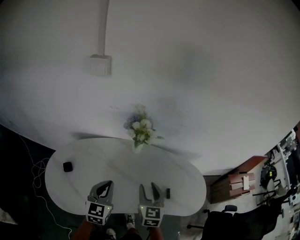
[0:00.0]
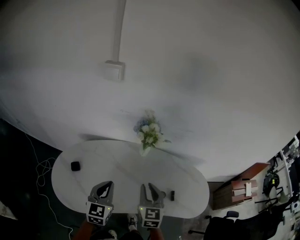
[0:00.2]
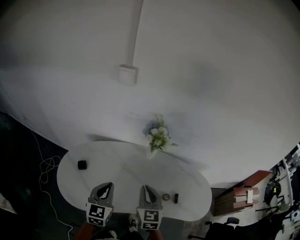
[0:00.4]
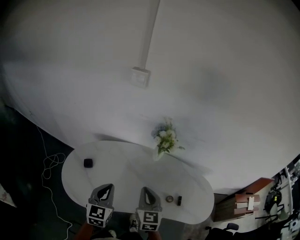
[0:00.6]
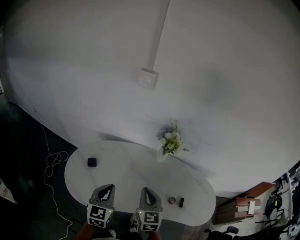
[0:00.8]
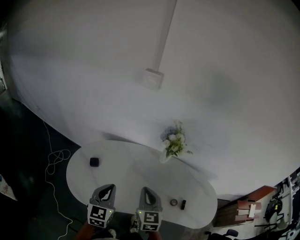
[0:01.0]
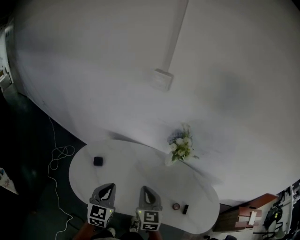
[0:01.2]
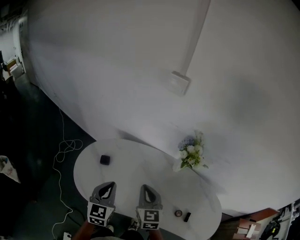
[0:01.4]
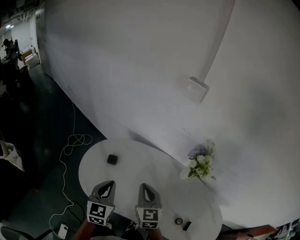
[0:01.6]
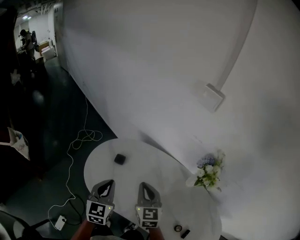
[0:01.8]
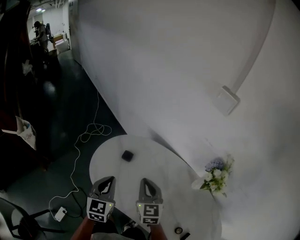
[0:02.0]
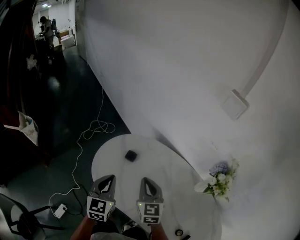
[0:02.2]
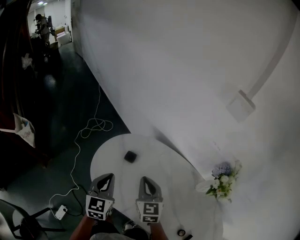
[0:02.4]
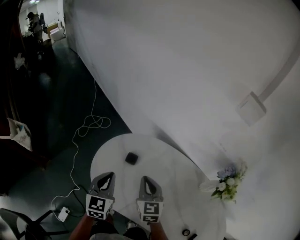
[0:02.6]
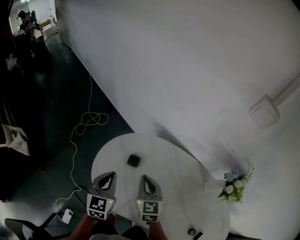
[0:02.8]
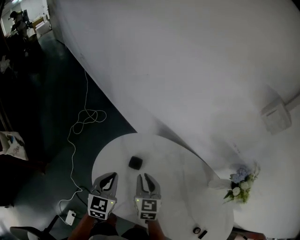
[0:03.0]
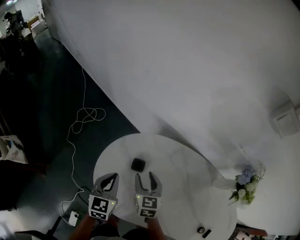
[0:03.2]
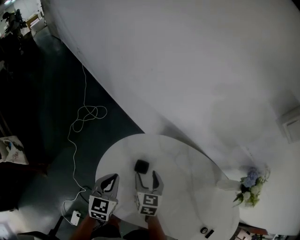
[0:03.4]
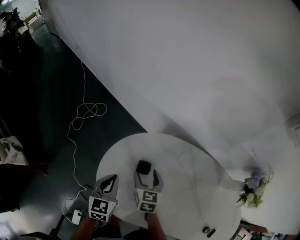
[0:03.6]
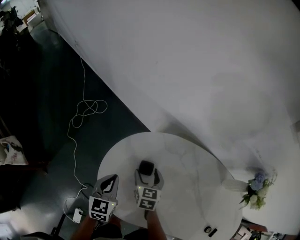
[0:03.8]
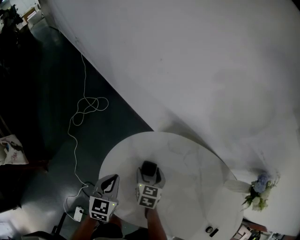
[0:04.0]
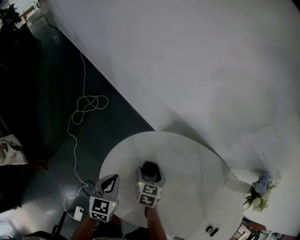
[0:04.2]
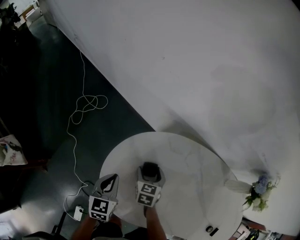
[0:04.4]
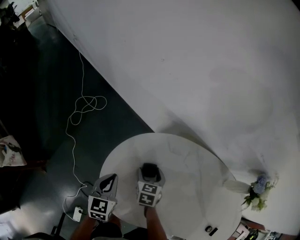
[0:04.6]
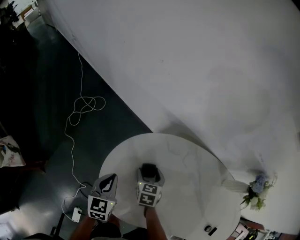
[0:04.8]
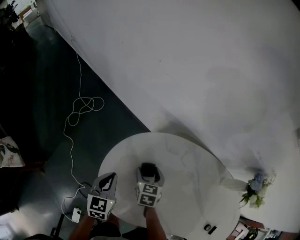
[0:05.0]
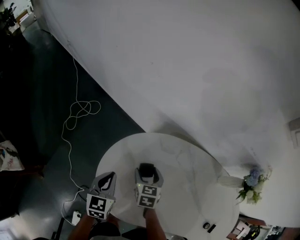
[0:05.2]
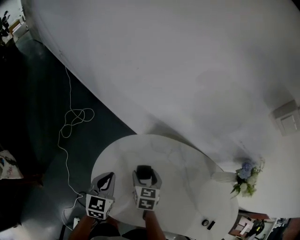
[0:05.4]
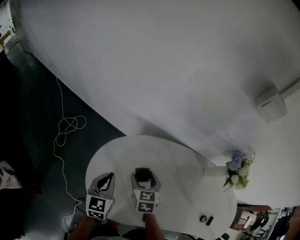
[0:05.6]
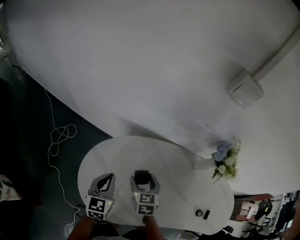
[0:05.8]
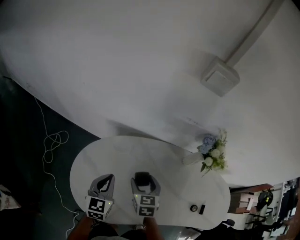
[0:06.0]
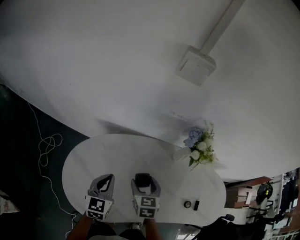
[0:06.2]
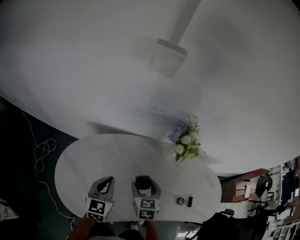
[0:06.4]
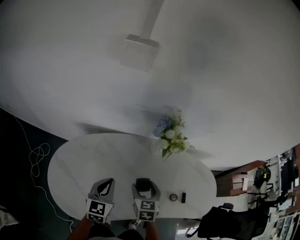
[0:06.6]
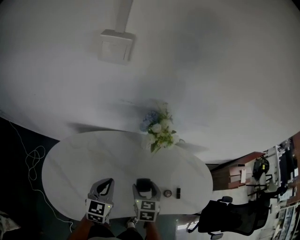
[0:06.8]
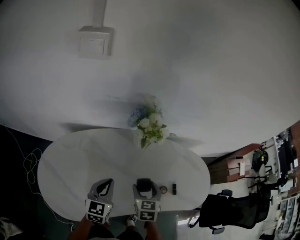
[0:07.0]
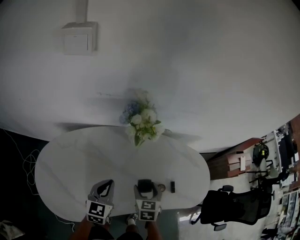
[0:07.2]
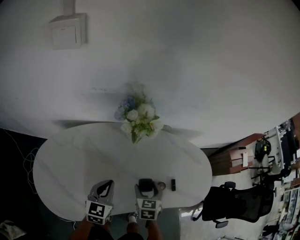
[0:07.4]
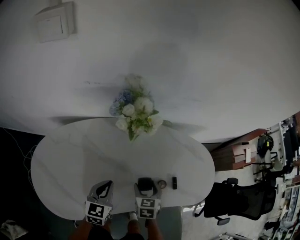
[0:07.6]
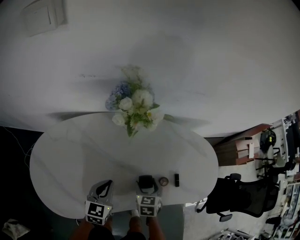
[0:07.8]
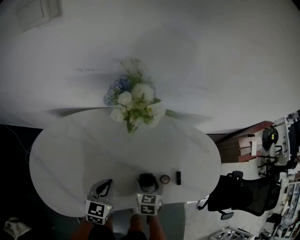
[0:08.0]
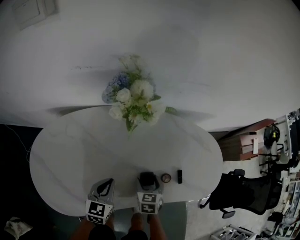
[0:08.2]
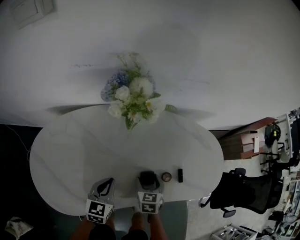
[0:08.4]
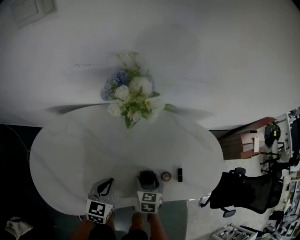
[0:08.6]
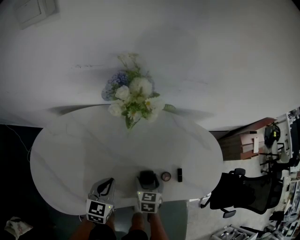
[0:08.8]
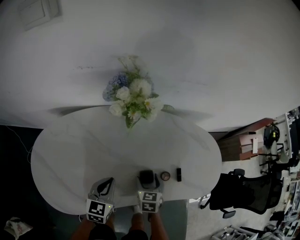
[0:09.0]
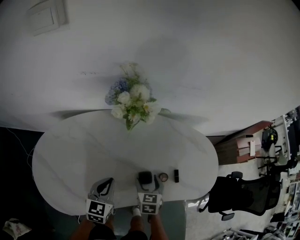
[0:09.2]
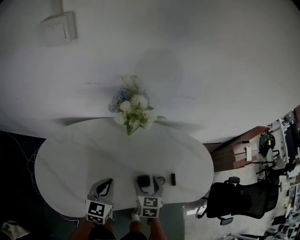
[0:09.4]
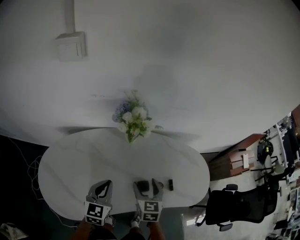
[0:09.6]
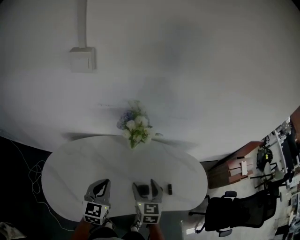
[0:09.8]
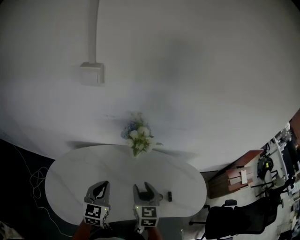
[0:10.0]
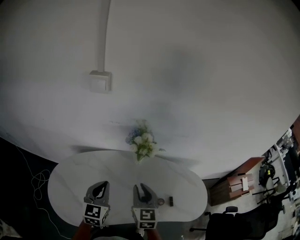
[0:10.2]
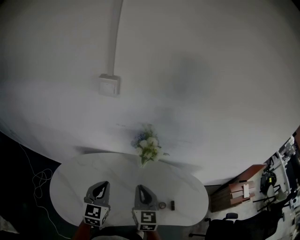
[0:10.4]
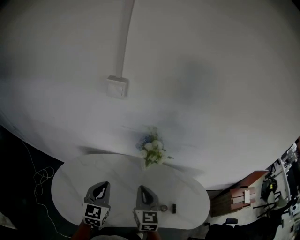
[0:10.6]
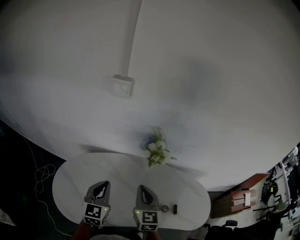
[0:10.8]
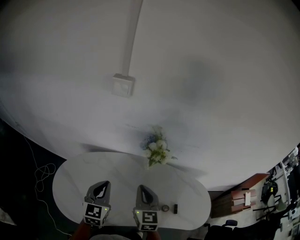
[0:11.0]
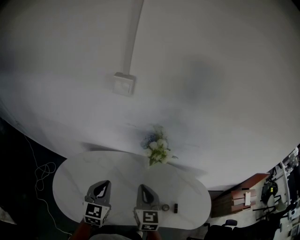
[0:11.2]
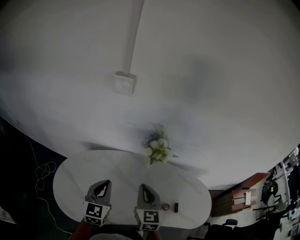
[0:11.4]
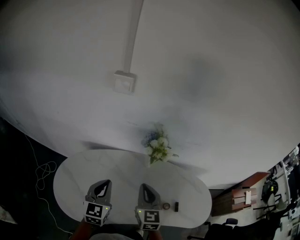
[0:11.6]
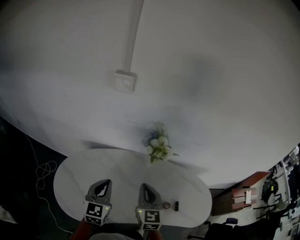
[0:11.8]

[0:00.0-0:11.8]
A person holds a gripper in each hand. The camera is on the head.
0:00.0 to 0:01.4: The left gripper shifts by approximately 20 cm, and rotates some 30 degrees. Meanwhile the right gripper shifts by approximately 20 cm, rotates some 30 degrees, and closes.
0:01.4 to 0:03.0: The left gripper moves approximately 25 cm. Meanwhile the right gripper changes place by some 30 cm.
0:03.0 to 0:04.4: The right gripper shifts approximately 15 cm downward, changes its angle by some 30 degrees, and opens. The left gripper heads downward and to the left, covering some 10 cm.
0:04.4 to 0:06.0: The grippers both shift to the right and upward by some 20 cm. The left gripper swivels some 20 degrees.
0:06.0 to 0:07.4: Both grippers travel together to the right, some 30 cm. The right gripper rotates some 20 degrees, while the left gripper swivels about 20 degrees.
0:07.4 to 0:08.8: The two grippers go approximately 10 cm downward.
0:08.8 to 0:10.4: Both grippers move upward, roughly 30 cm. The left gripper swivels about 30 degrees. Meanwhile the right gripper tilts its fingers approximately 40 degrees upward, and closes up.
0:10.4 to 0:11.8: The grippers stay close to where they were, moving slightly.

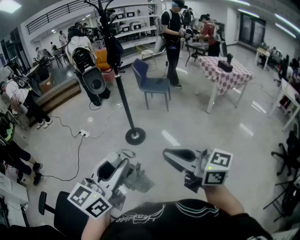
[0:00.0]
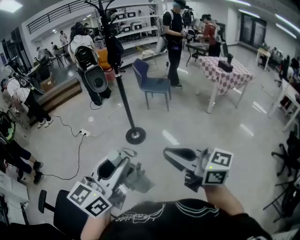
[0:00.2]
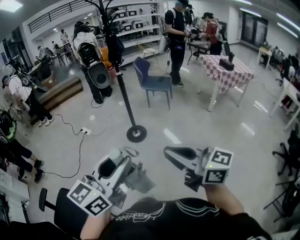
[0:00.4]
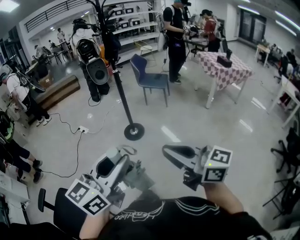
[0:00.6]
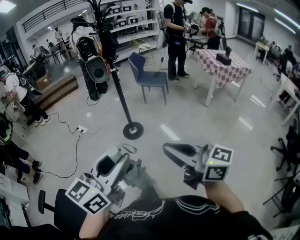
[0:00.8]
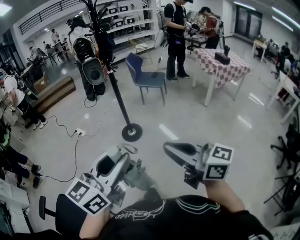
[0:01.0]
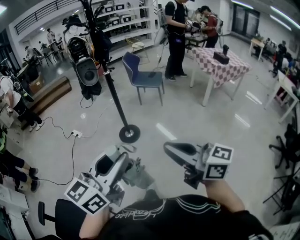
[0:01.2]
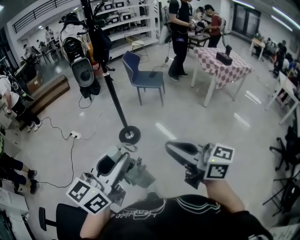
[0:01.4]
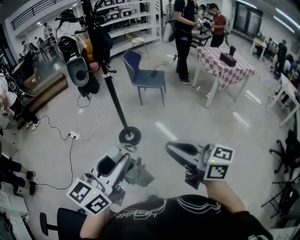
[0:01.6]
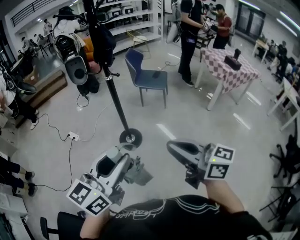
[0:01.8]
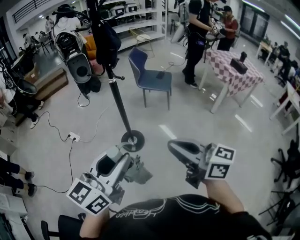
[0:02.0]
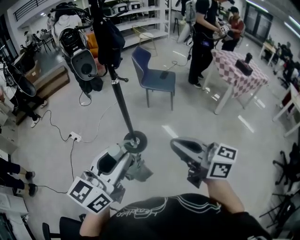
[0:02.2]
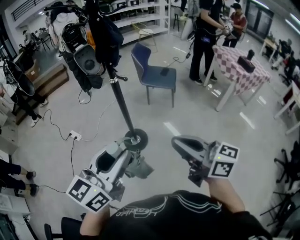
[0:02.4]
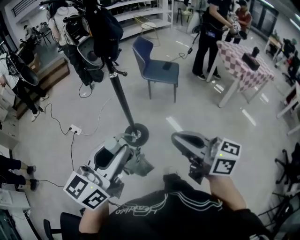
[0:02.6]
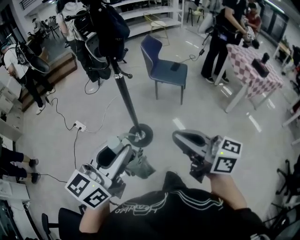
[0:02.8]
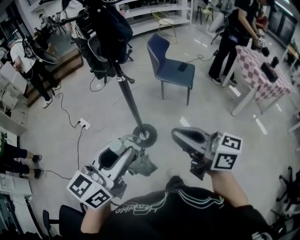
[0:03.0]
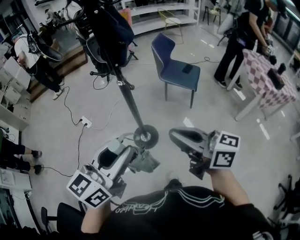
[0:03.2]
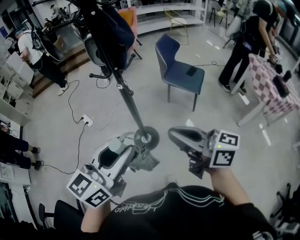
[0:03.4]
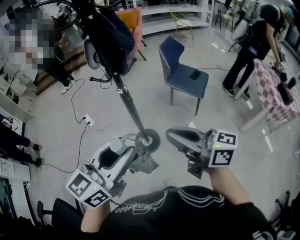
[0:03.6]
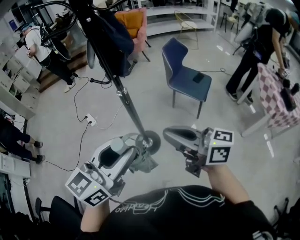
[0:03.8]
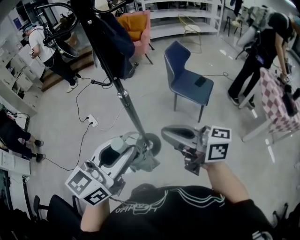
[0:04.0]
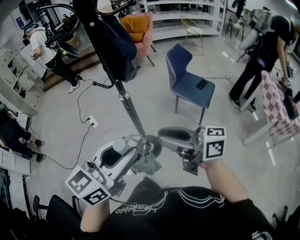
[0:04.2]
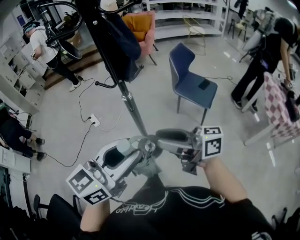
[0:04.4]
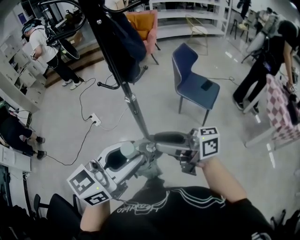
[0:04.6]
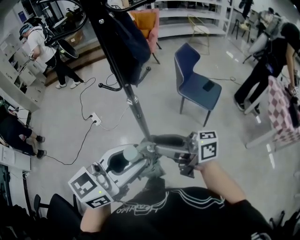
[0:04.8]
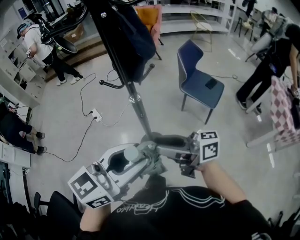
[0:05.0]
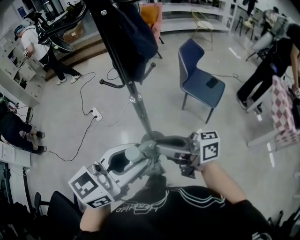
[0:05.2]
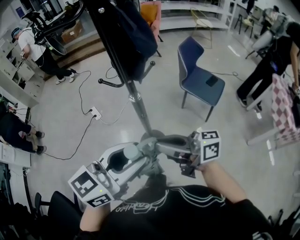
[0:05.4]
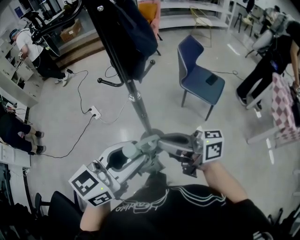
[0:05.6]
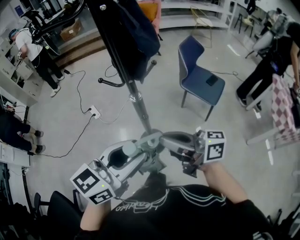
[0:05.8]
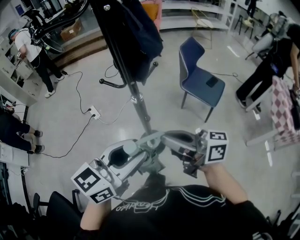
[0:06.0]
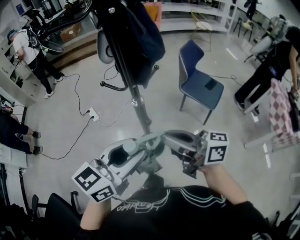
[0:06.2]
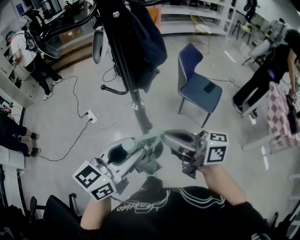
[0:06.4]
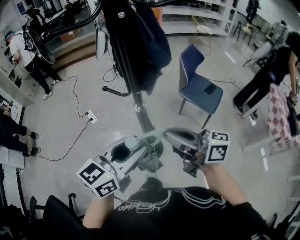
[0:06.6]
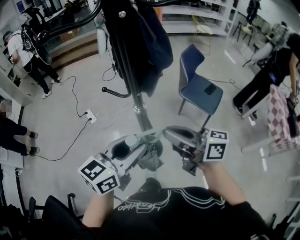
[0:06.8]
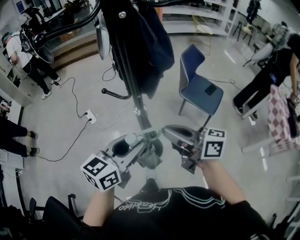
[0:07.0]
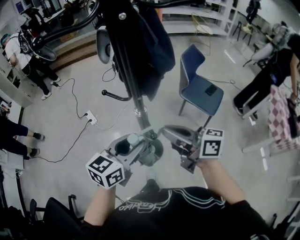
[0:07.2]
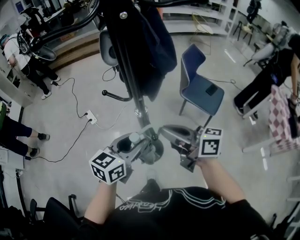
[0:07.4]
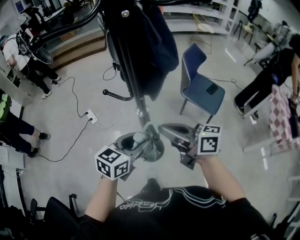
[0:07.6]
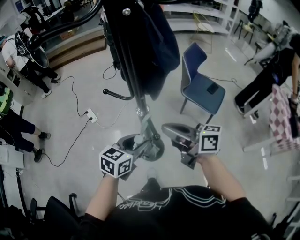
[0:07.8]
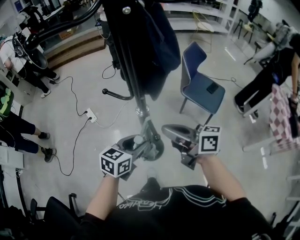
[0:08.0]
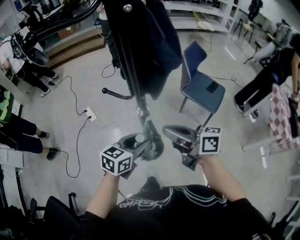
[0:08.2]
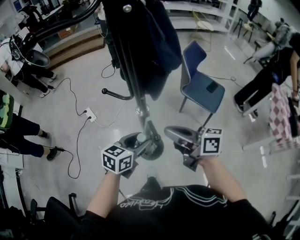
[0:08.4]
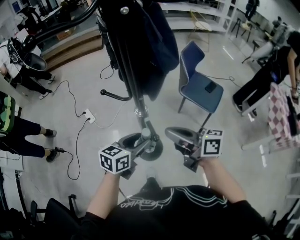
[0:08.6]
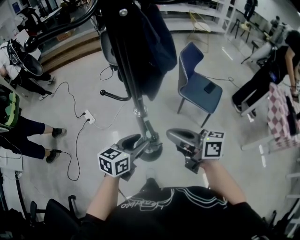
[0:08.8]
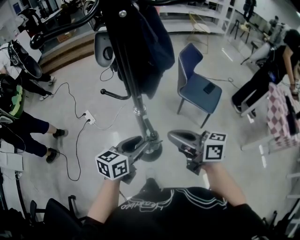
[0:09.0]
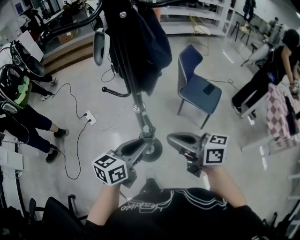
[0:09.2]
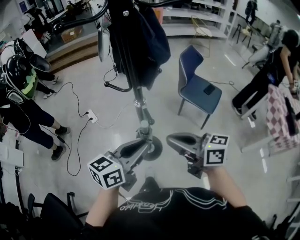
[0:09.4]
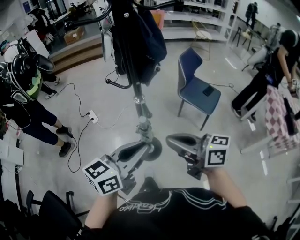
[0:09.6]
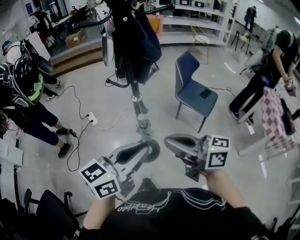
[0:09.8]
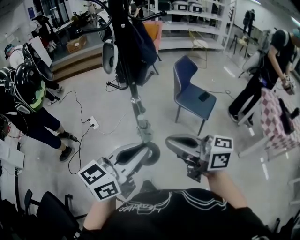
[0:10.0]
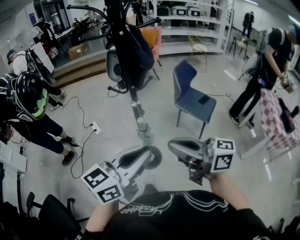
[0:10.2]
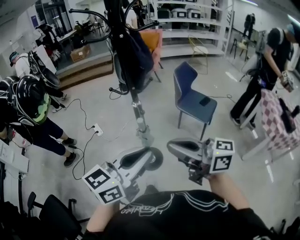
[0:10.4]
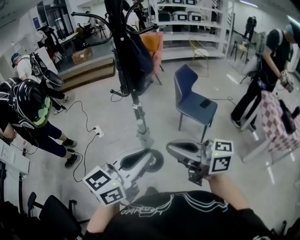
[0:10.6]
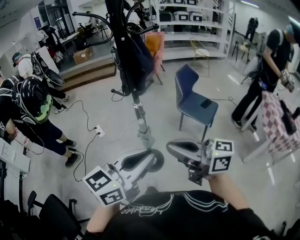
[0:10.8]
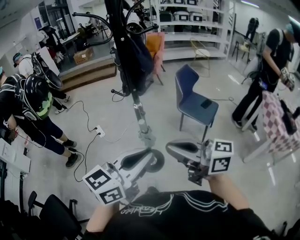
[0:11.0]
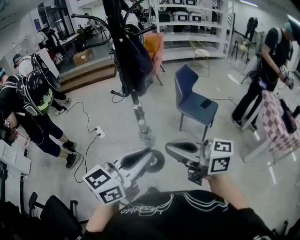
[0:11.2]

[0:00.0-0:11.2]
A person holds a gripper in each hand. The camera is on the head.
0:00.0 to 0:01.6: The two grippers go approximately 20 cm forward.
0:01.6 to 0:03.2: The grippers both shift forward by approximately 35 cm.
0:03.2 to 0:04.8: The left gripper changes place by some 10 cm. The right gripper ends up some 15 cm from where it was, rotates approximately 40 degrees, and opens up.
0:04.8 to 0:06.4: The right gripper moves roughly 5 cm, and closes. The left gripper changes place by some 10 cm.
0:06.4 to 0:08.0: The left gripper is displaced downward and forward by approximately 20 cm, while the right gripper moves forward and downward, some 10 cm.
0:08.0 to 0:09.6: The left gripper heads upward and backward, covering approximately 20 cm, changes its angle by approximately 20 degrees, and closes its fingers. Meanwhile the right gripper heads backward, covering approximately 15 cm.
0:09.6 to 0:11.2: The two grippers go some 15 cm backward and upward.

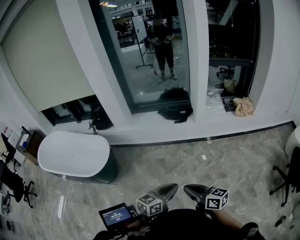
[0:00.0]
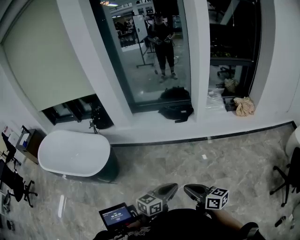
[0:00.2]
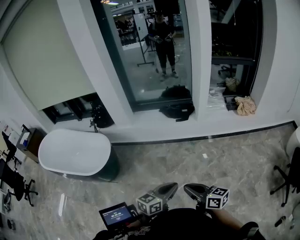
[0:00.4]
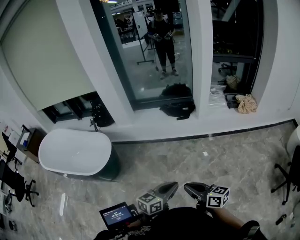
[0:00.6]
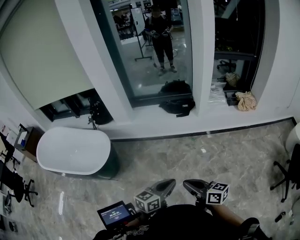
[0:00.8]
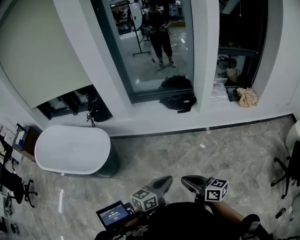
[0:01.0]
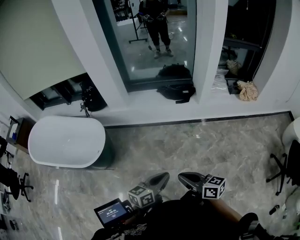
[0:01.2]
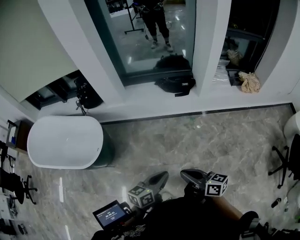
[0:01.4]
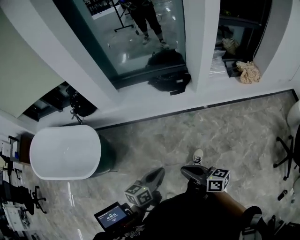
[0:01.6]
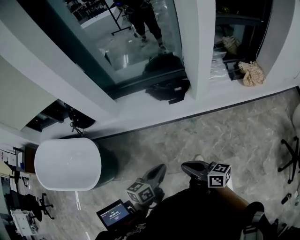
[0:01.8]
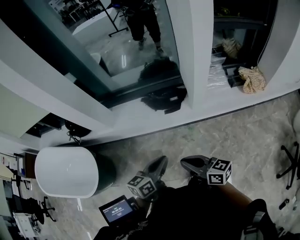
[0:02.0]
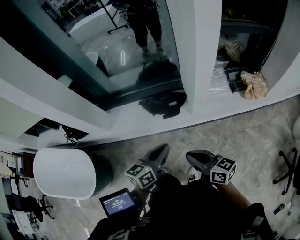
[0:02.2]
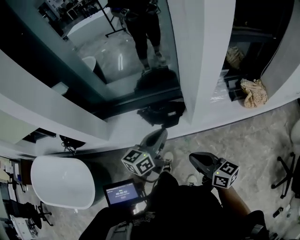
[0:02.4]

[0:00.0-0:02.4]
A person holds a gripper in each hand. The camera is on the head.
0:00.0 to 0:01.2: Both grippers travel together to the left and forward, roughly 10 cm.
0:01.2 to 0:02.4: Both grippers are carried forward and to the right, some 50 cm.
